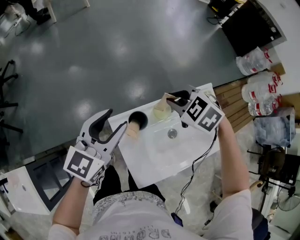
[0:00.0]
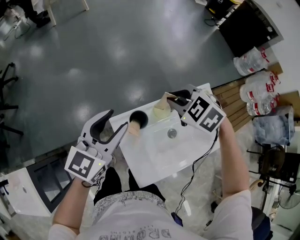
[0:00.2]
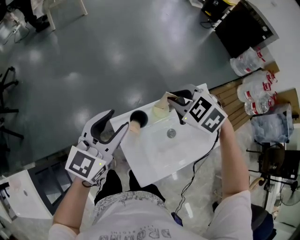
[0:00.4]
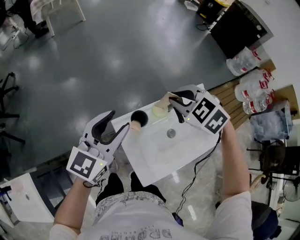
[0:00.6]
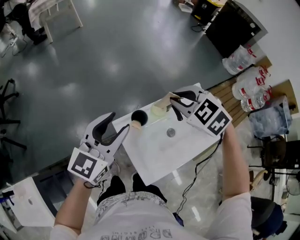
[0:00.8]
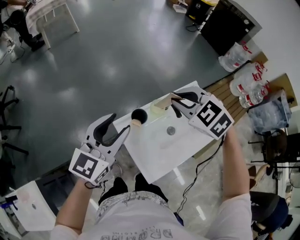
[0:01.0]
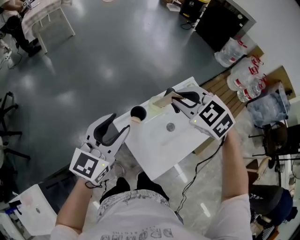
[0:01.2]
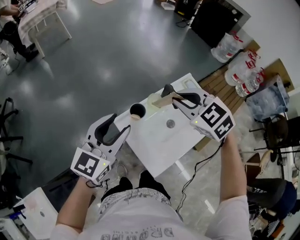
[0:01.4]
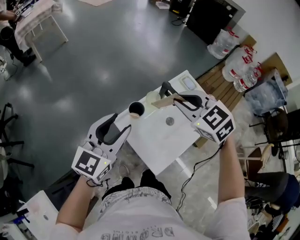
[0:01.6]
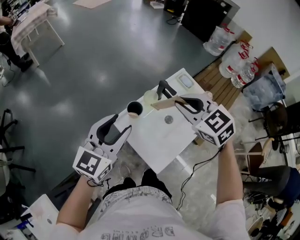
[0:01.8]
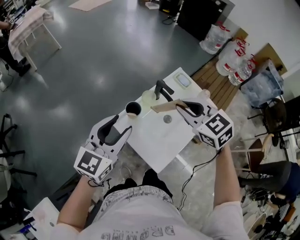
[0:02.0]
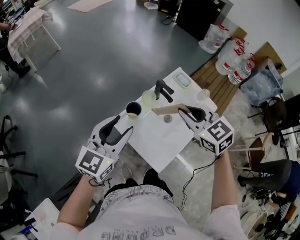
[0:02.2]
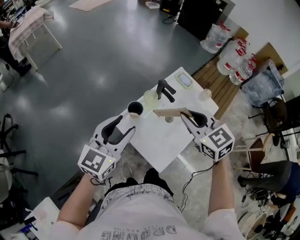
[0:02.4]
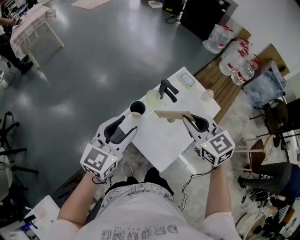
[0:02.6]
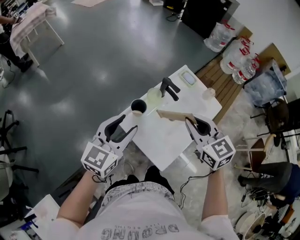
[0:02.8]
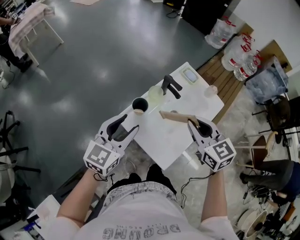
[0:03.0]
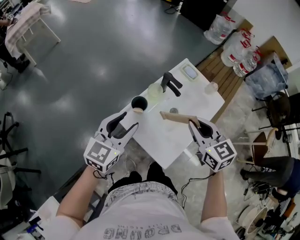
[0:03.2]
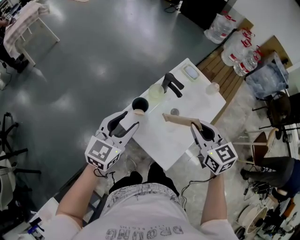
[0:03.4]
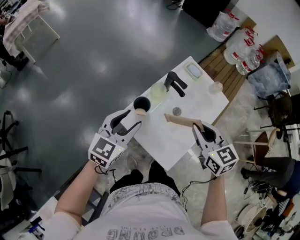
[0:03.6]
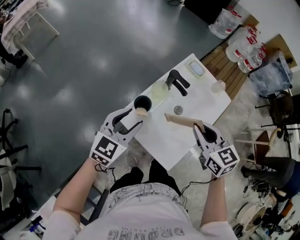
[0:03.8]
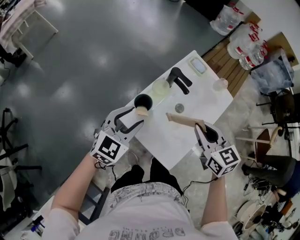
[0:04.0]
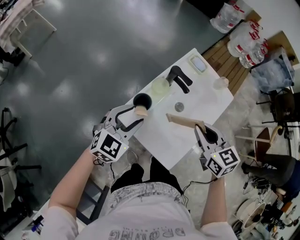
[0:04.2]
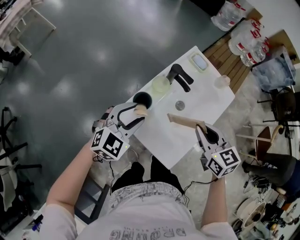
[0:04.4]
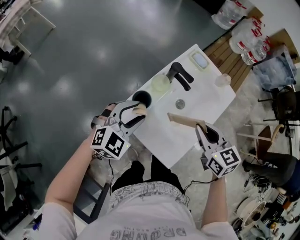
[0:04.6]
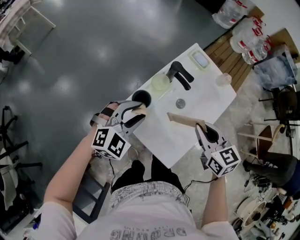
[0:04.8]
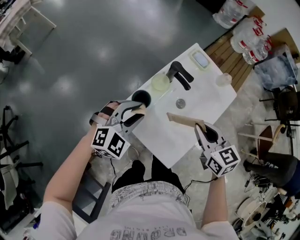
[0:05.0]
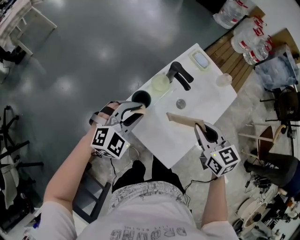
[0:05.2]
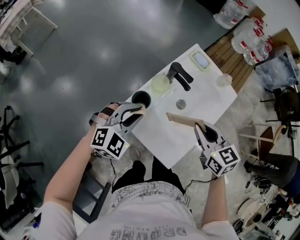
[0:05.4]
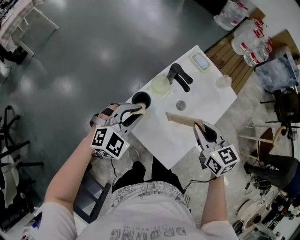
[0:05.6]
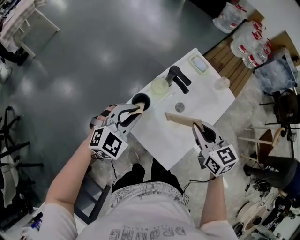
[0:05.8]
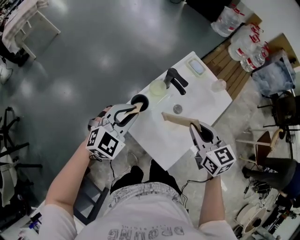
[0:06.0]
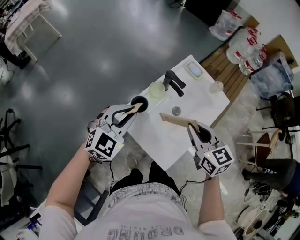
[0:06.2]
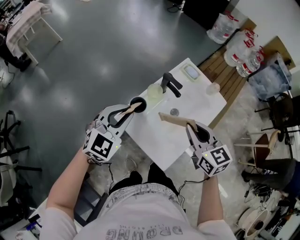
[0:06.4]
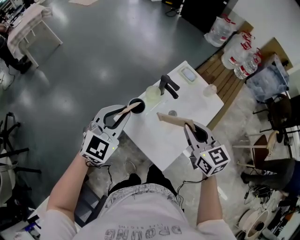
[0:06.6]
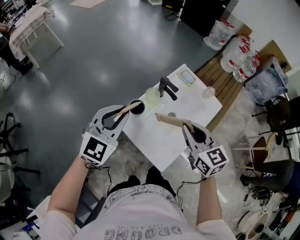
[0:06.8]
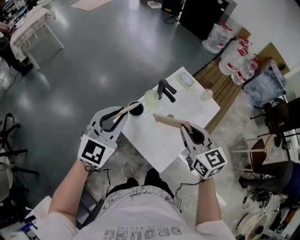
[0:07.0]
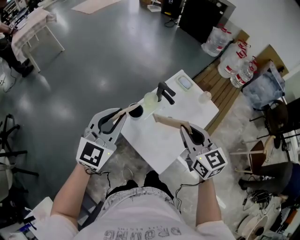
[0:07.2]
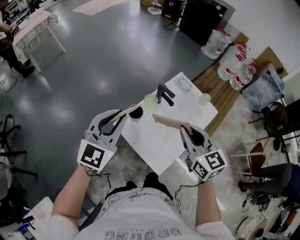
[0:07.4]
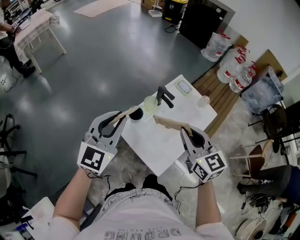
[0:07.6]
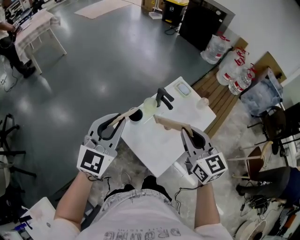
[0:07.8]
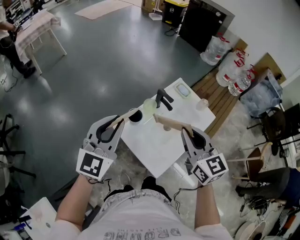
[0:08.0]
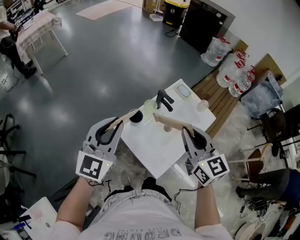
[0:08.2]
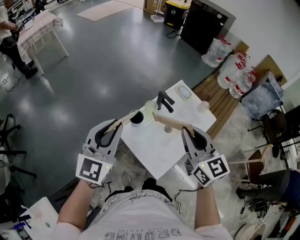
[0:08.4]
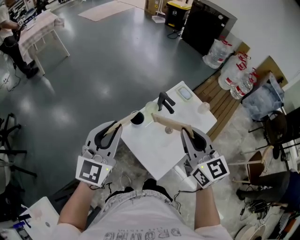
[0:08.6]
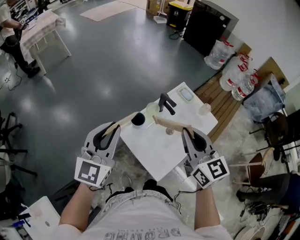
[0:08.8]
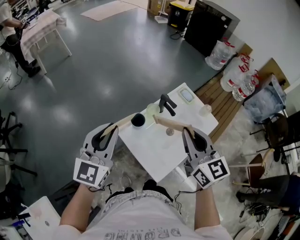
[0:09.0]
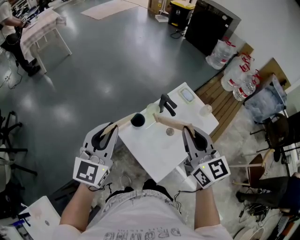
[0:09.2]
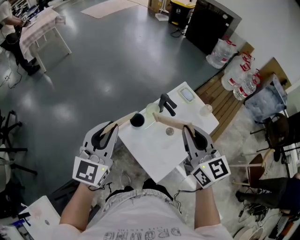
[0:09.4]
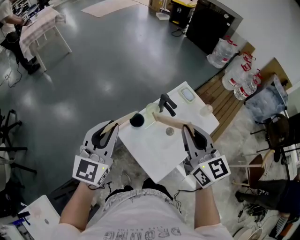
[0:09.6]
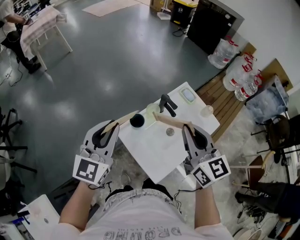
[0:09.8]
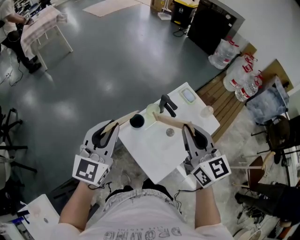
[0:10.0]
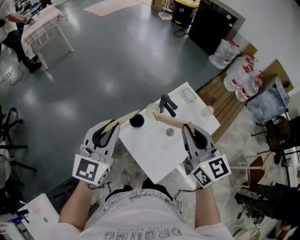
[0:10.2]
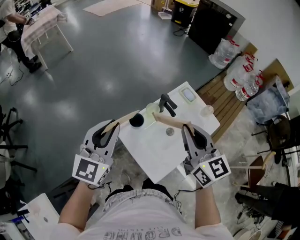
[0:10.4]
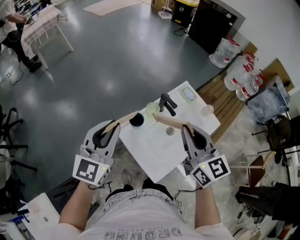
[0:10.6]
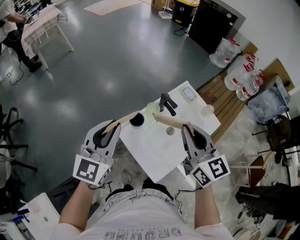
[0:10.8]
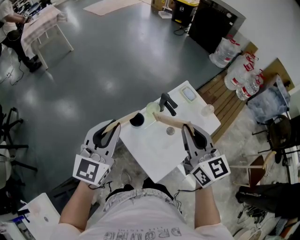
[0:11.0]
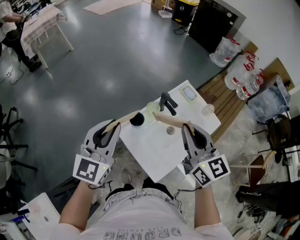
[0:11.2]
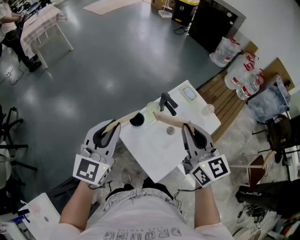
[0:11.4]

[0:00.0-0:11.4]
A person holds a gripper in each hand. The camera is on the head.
0:00.0 to 0:01.4: The right gripper travels upward and backward by about 20 cm, and changes its angle by approximately 30 degrees. The left gripper moves backward and upward, some 10 cm.
0:01.4 to 0:02.8: The right gripper travels backward and to the right by approximately 10 cm, and turns by approximately 30 degrees.
0:02.8 to 0:04.2: The left gripper is displaced downward and forward by about 15 cm, and swivels some 30 degrees, while the right gripper goes roughly 10 cm downward.
0:04.2 to 0:05.6: The left gripper closes its fingers.
0:05.6 to 0:07.2: The right gripper heads upward, covering some 10 cm; the left gripper shifts some 15 cm upward, and turns by about 30 degrees.
0:07.2 to 0:08.6: The right gripper is displaced upward by some 5 cm. Meanwhile the left gripper moves roughly 5 cm.
0:08.6 to 0:10.0: The grippers move only a little.
0:10.0 to 0:11.4: Neither gripper changes place.

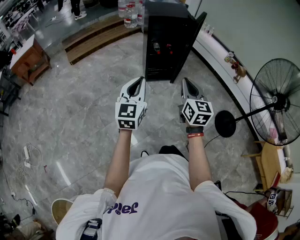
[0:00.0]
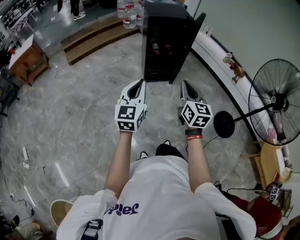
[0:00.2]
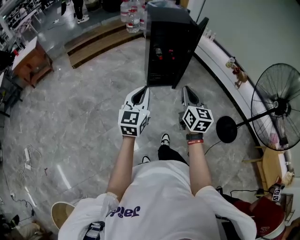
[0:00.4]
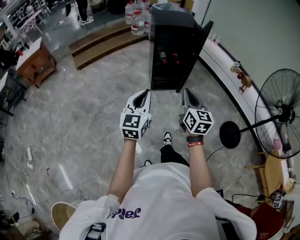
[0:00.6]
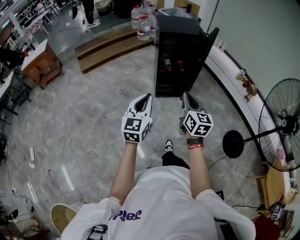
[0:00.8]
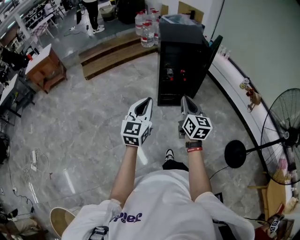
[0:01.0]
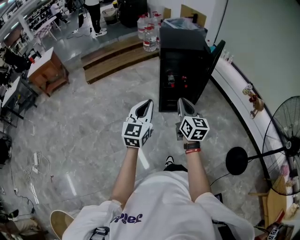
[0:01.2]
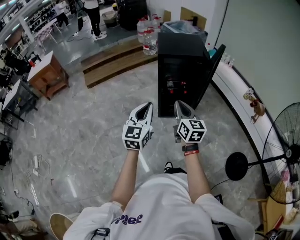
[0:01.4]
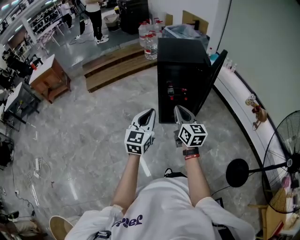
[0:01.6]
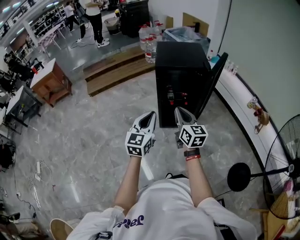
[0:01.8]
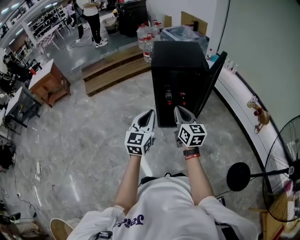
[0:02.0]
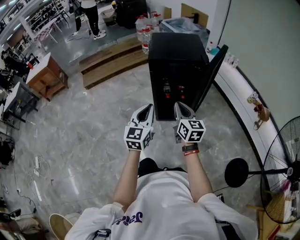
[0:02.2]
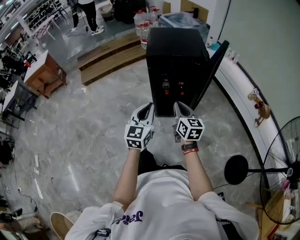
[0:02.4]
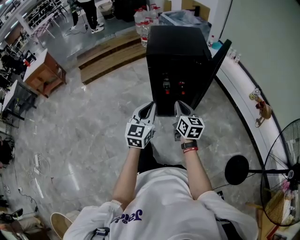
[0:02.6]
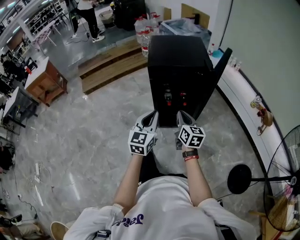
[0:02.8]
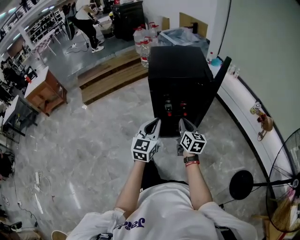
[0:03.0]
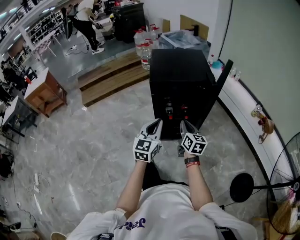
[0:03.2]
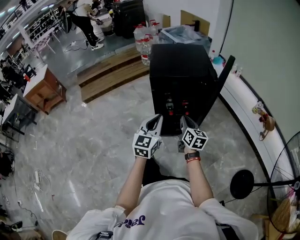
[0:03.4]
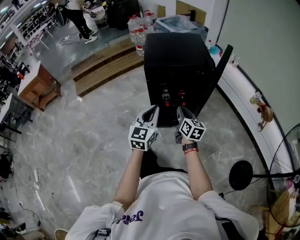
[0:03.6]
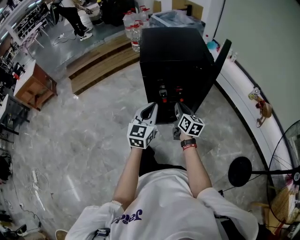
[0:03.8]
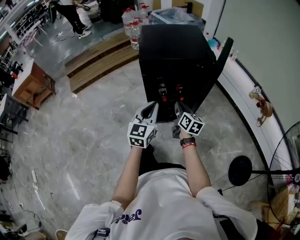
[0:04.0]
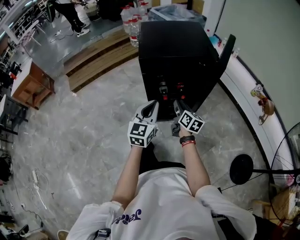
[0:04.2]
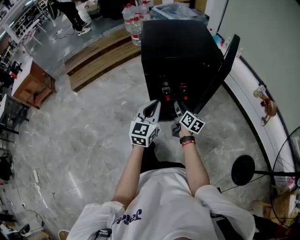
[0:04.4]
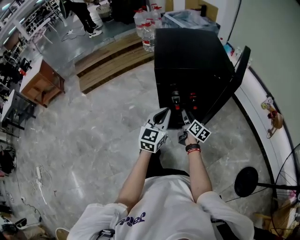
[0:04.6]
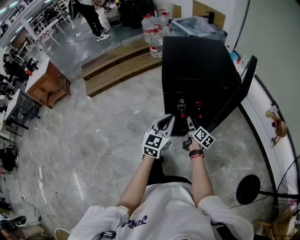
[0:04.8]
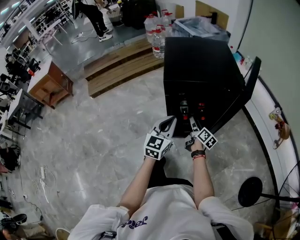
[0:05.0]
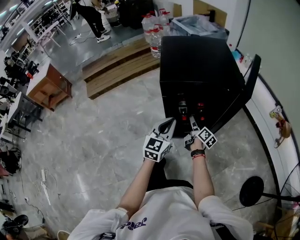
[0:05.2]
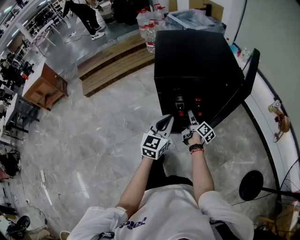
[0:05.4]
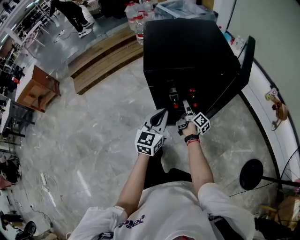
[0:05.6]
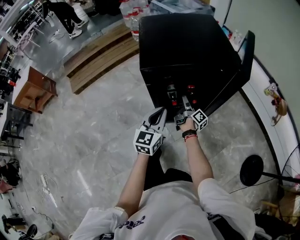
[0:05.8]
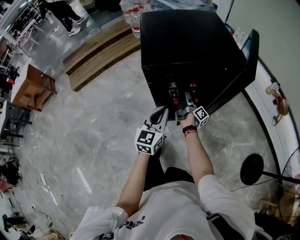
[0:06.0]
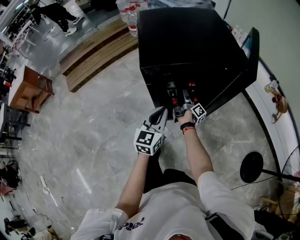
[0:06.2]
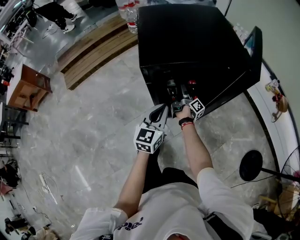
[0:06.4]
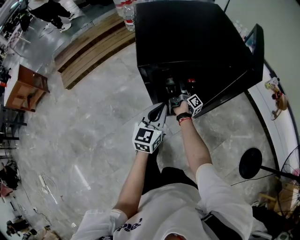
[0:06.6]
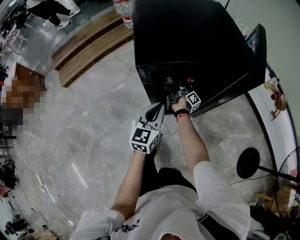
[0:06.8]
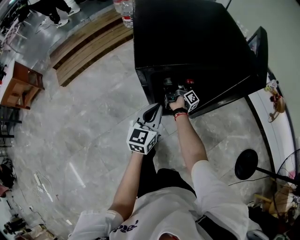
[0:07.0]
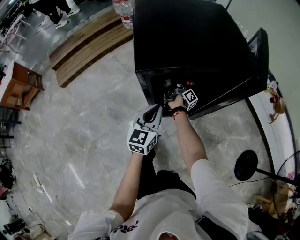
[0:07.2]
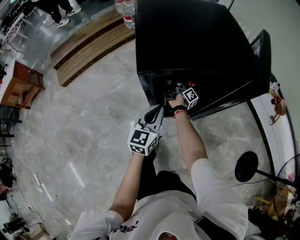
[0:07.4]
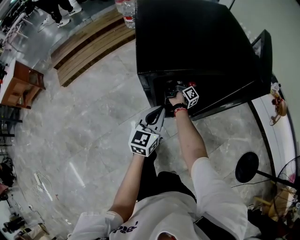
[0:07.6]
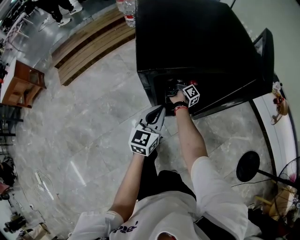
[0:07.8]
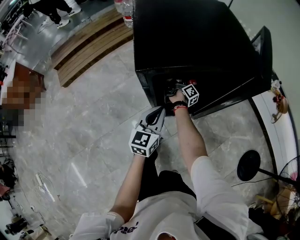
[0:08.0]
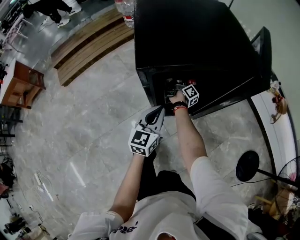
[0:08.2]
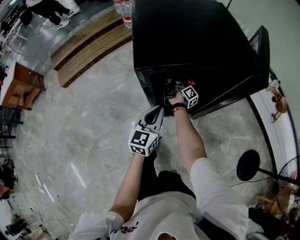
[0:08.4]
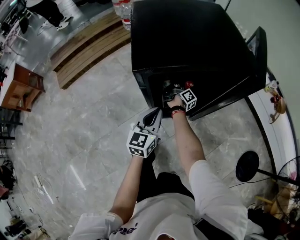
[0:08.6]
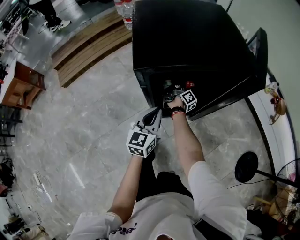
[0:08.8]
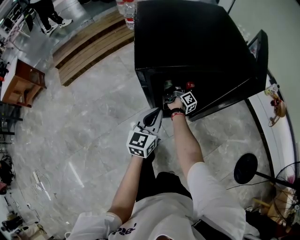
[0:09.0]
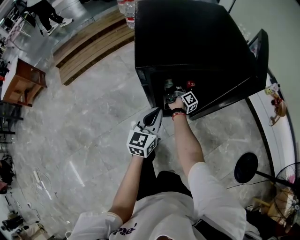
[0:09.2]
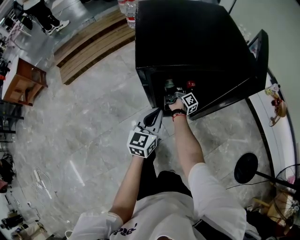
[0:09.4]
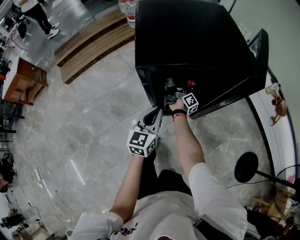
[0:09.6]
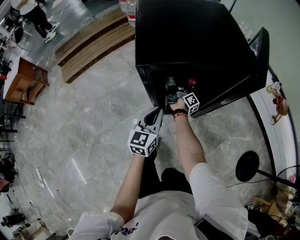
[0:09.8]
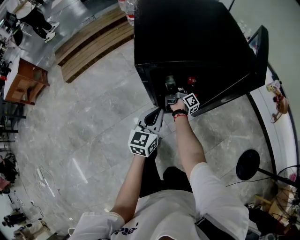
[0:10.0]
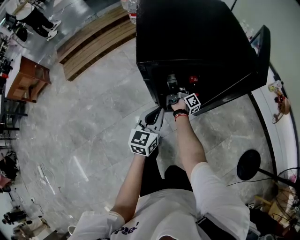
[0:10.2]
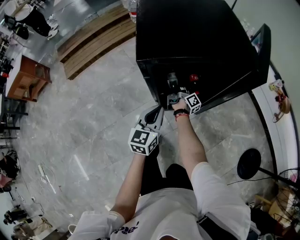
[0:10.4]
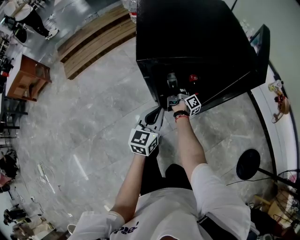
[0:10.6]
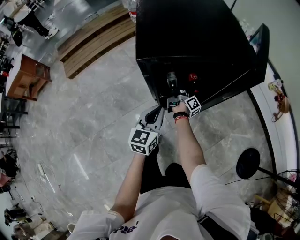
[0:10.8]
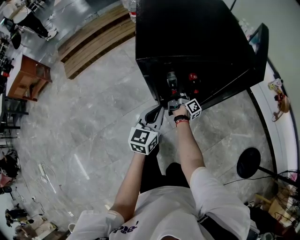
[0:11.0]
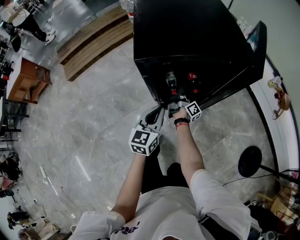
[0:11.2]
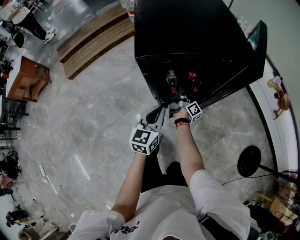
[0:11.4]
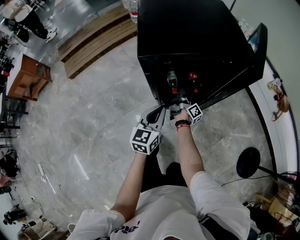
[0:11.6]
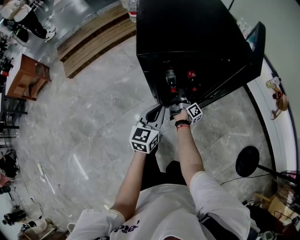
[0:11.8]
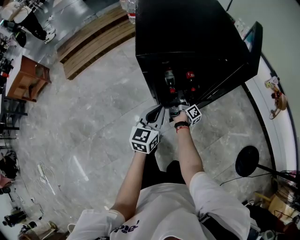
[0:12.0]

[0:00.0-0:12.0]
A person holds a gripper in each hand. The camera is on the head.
0:00.0 to 0:01.6: The left gripper moves approximately 30 cm.
0:01.6 to 0:03.0: The left gripper changes place by approximately 20 cm.
0:03.0 to 0:04.4: The left gripper shifts by some 15 cm.
0:04.4 to 0:06.0: The left gripper moves downward, approximately 10 cm.
0:06.0 to 0:07.6: The left gripper shifts by some 10 cm.

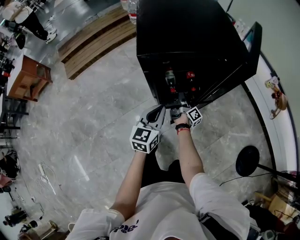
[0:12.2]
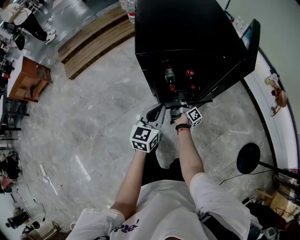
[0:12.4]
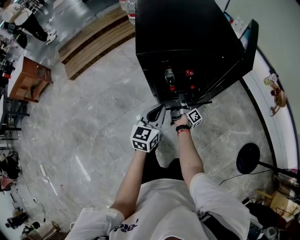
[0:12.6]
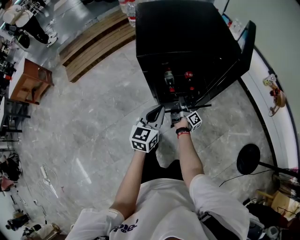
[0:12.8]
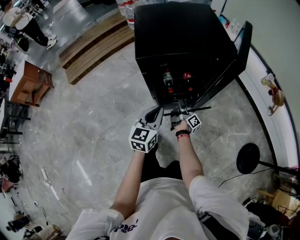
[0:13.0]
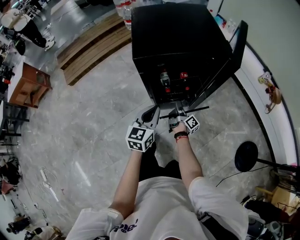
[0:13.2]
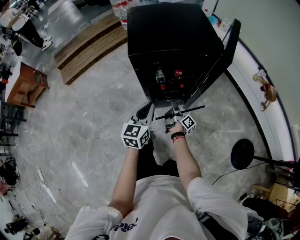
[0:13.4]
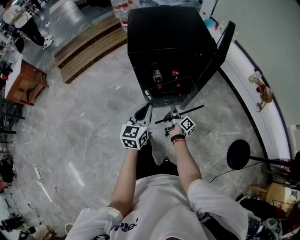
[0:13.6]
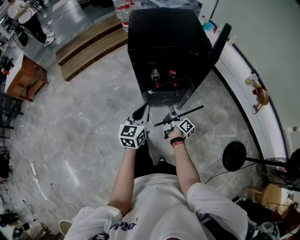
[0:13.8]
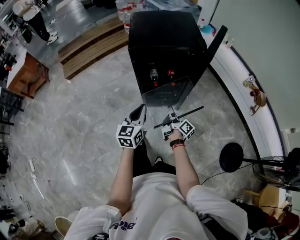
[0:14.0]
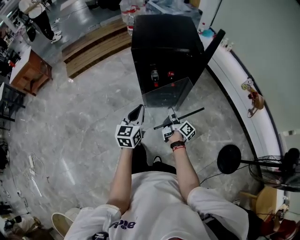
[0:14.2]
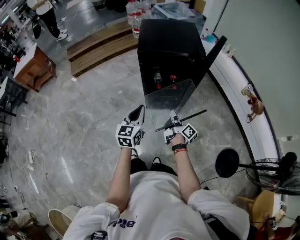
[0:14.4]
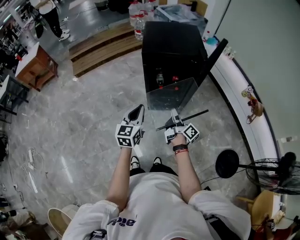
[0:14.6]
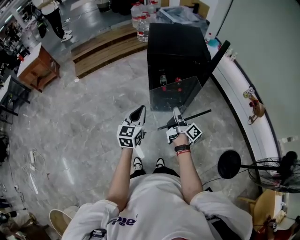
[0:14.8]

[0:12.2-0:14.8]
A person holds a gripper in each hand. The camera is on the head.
0:12.2 to 0:13.4: The left gripper is displaced upward by some 5 cm.
0:13.4 to 0:14.8: The left gripper moves about 25 cm.
